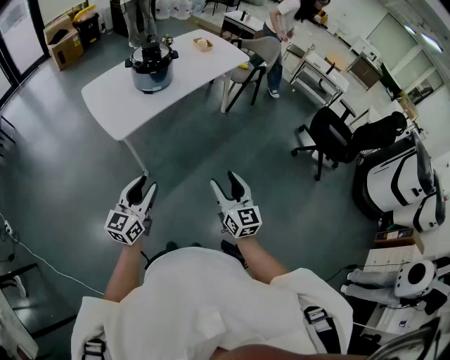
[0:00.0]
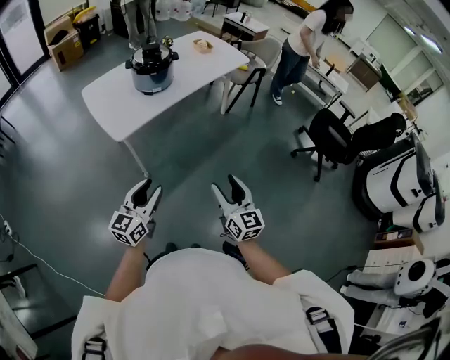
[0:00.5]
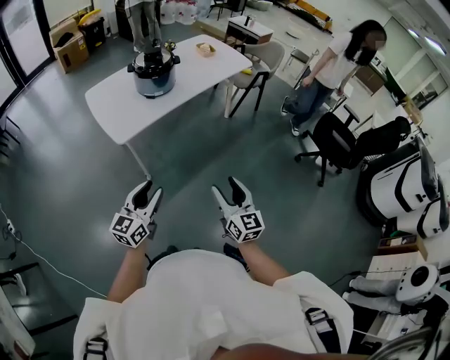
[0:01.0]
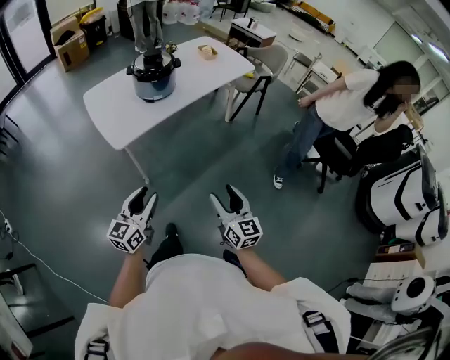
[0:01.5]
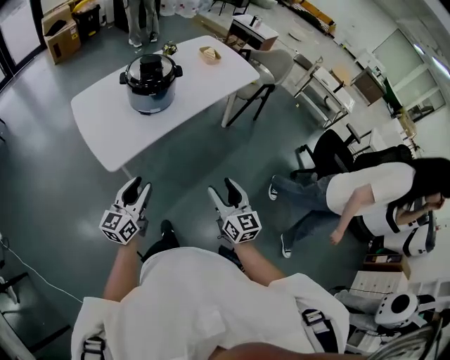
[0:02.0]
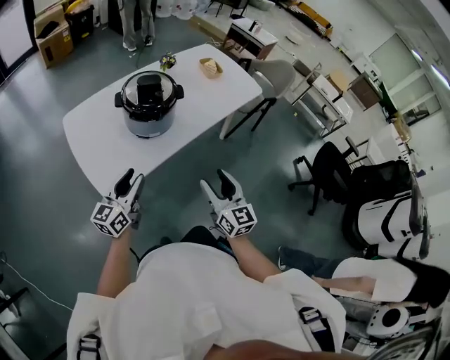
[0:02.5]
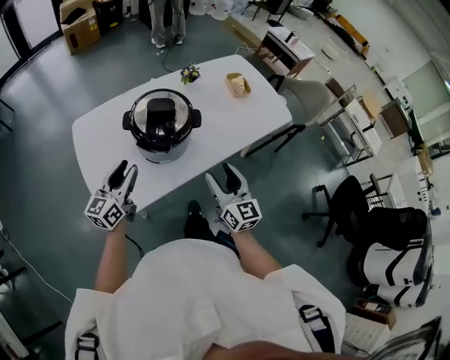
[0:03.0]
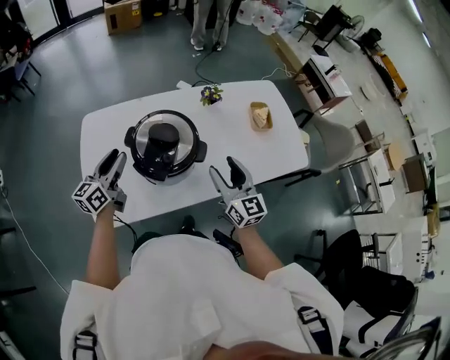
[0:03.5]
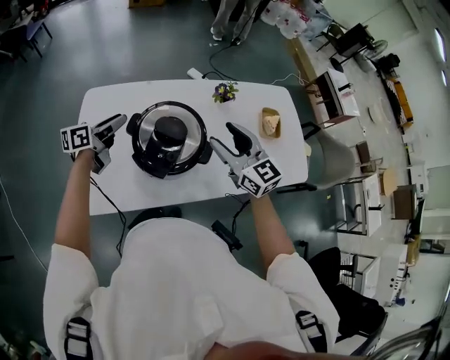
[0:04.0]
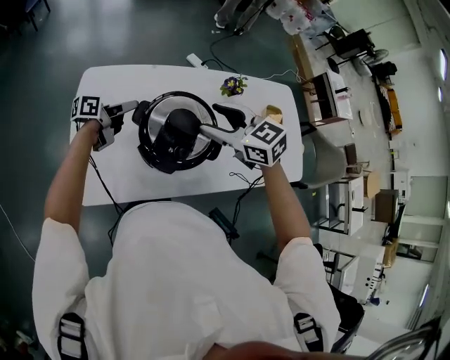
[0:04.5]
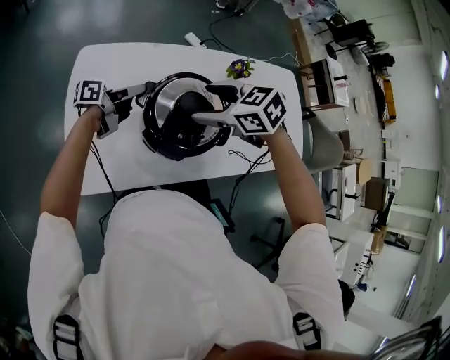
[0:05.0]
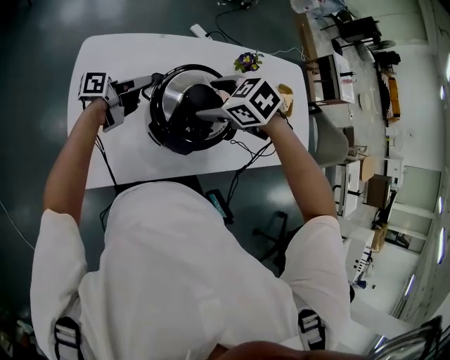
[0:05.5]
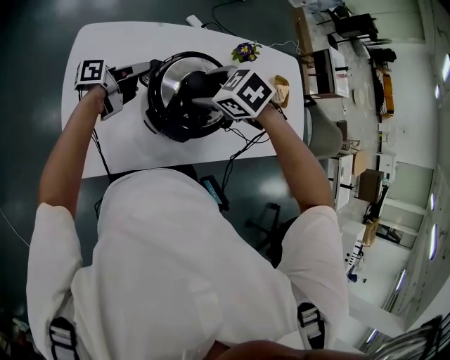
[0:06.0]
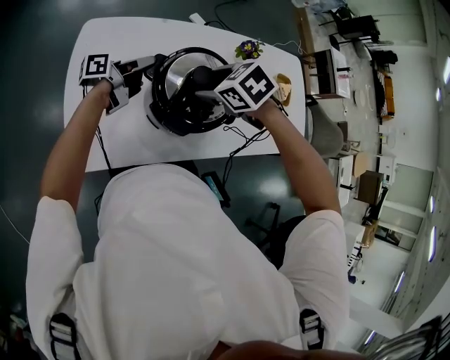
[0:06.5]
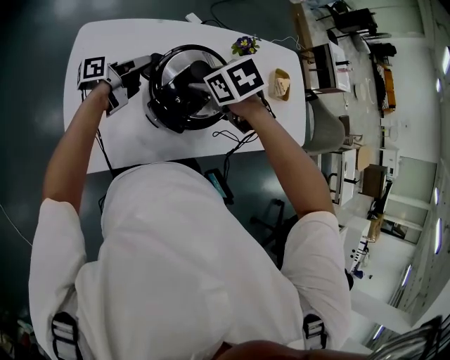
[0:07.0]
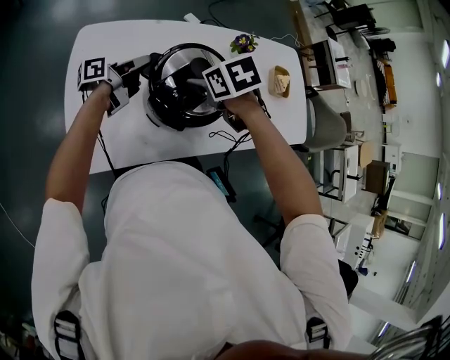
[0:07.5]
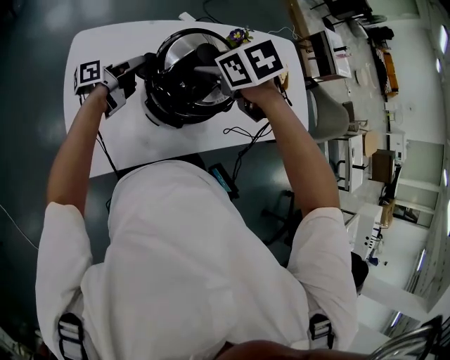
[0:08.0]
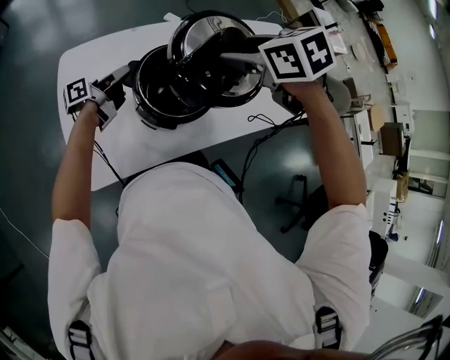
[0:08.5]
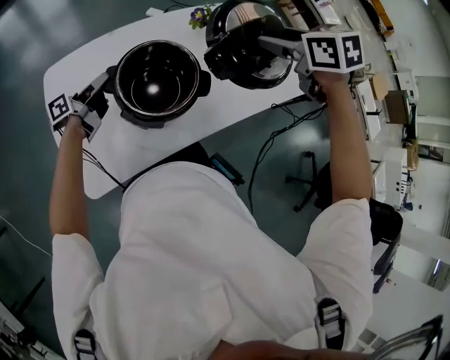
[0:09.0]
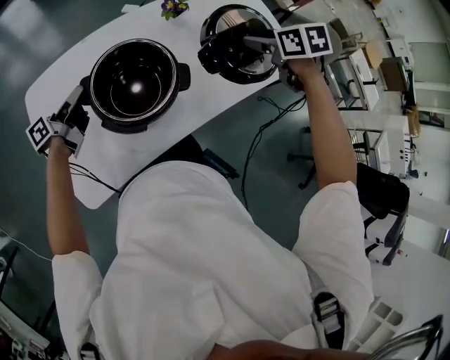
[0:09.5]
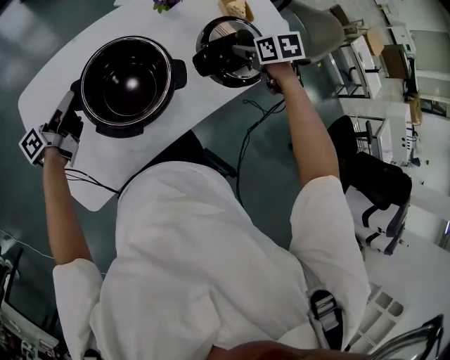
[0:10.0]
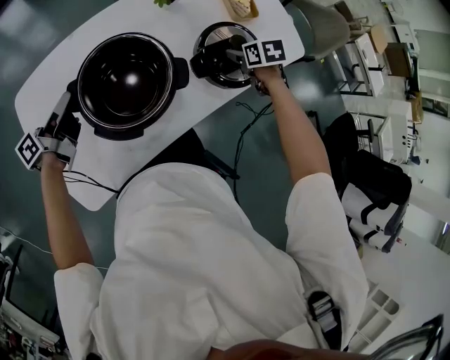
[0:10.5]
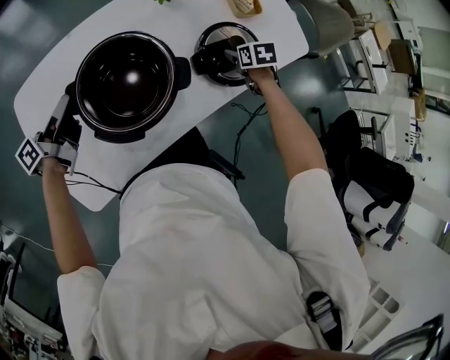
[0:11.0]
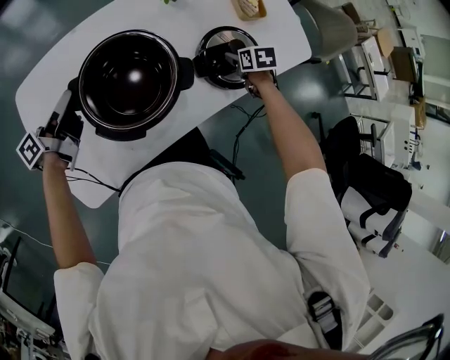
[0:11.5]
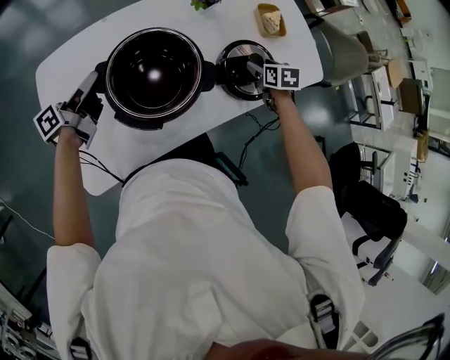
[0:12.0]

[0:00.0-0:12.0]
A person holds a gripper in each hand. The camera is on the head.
0:00.0 to 0:02.0: Both grippers travel together forward, approximately 20 cm.
0:02.0 to 0:04.0: The two grippers travel together, approximately 60 cm. The right gripper turns by approximately 50 degrees, while the left gripper rotates about 30 degrees.
0:04.0 to 0:06.0: The right gripper shifts by roughly 20 cm, and tips its fingers downward by approximately 60 degrees. The left gripper moves downward, some 5 cm, and rotates roughly 30 degrees.
0:06.0 to 0:08.0: The right gripper travels upward by some 5 cm, and changes its angle by about 30 degrees.
0:08.0 to 0:10.0: The right gripper heads to the right, covering roughly 35 cm, and rotates roughly 40 degrees.
0:10.0 to 0:12.0: The right gripper heads downward, covering approximately 10 cm.

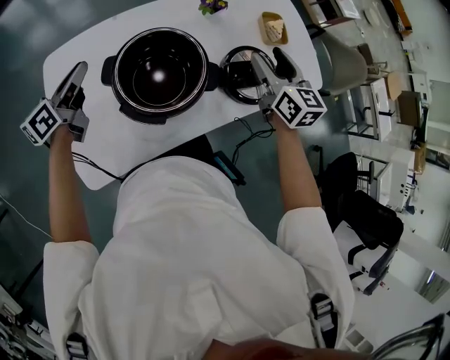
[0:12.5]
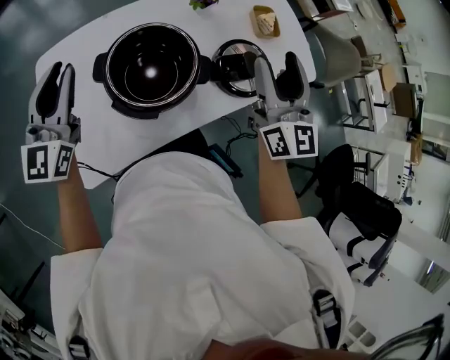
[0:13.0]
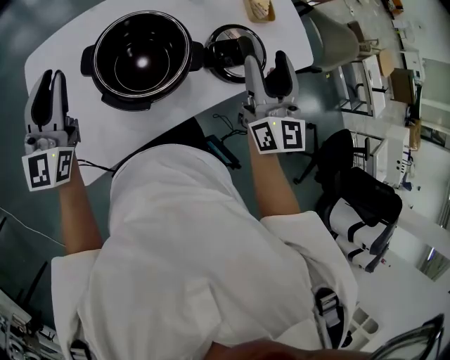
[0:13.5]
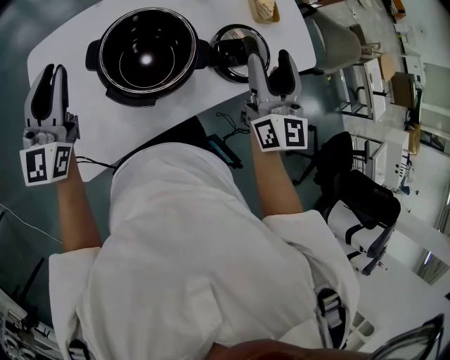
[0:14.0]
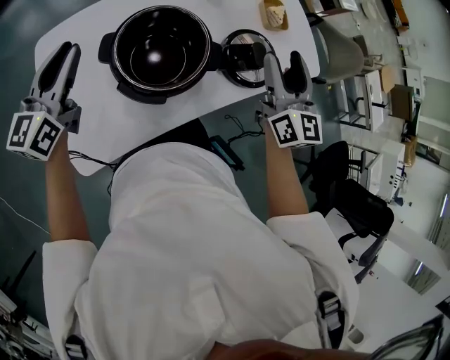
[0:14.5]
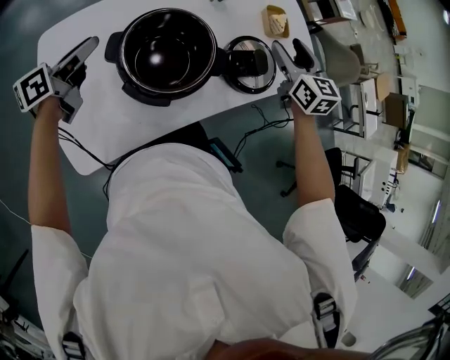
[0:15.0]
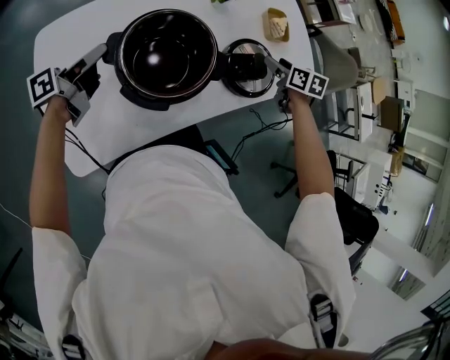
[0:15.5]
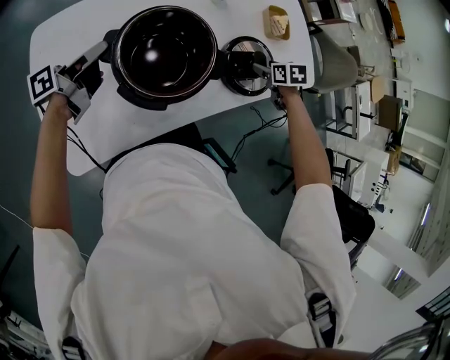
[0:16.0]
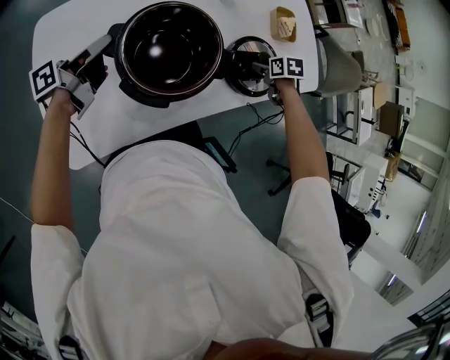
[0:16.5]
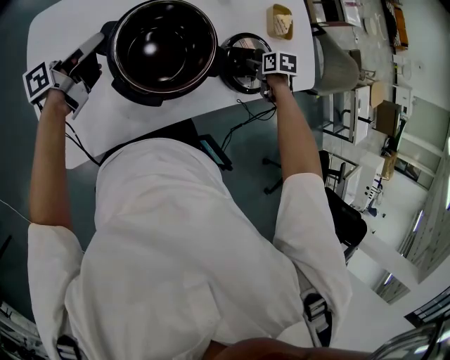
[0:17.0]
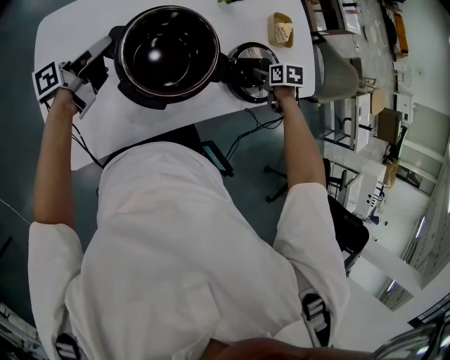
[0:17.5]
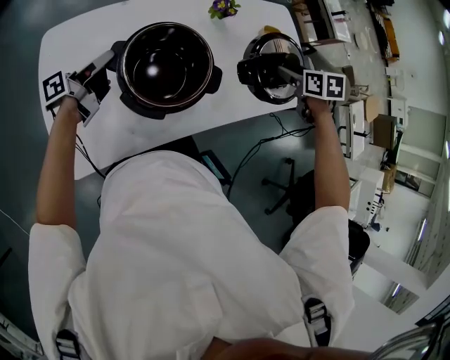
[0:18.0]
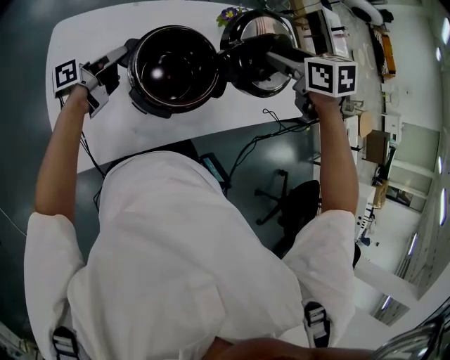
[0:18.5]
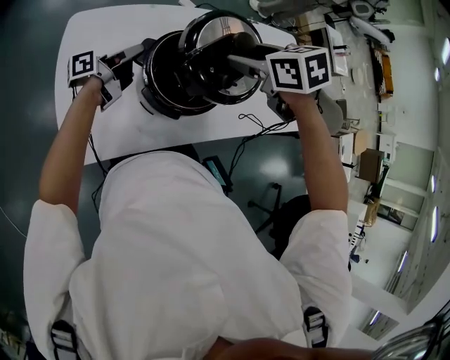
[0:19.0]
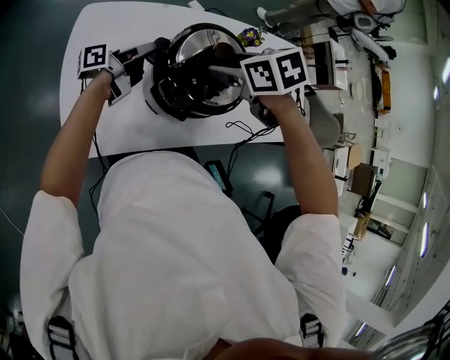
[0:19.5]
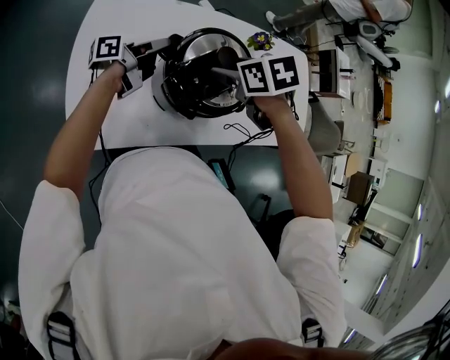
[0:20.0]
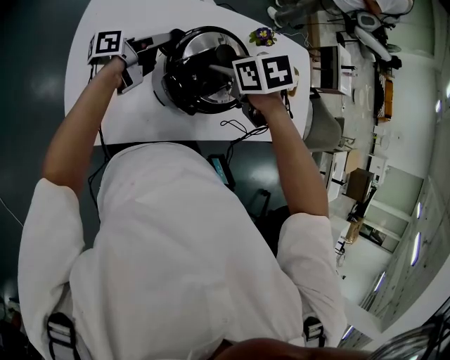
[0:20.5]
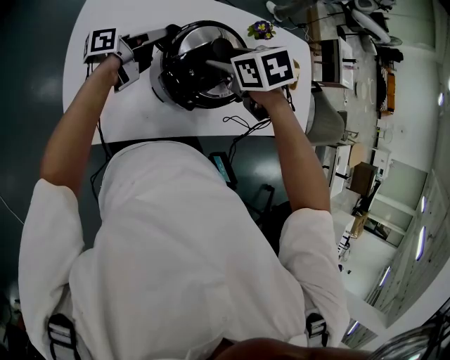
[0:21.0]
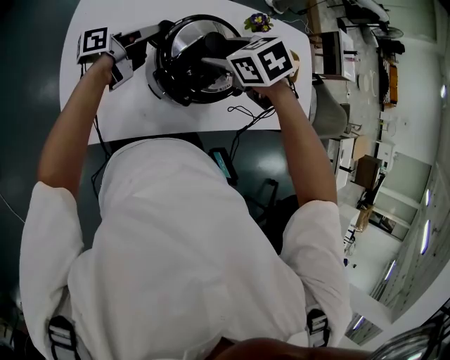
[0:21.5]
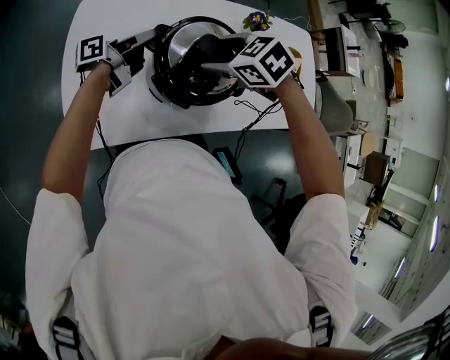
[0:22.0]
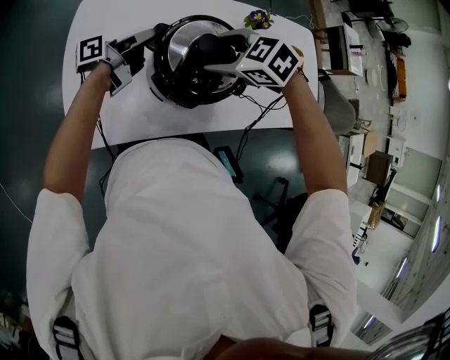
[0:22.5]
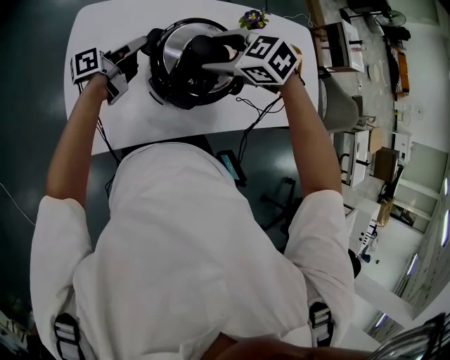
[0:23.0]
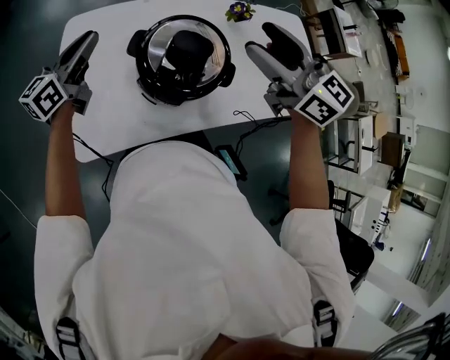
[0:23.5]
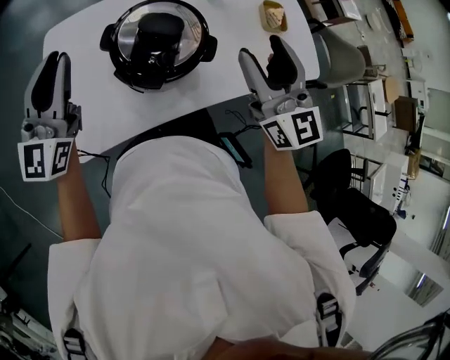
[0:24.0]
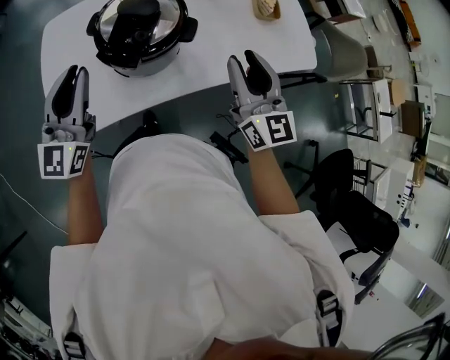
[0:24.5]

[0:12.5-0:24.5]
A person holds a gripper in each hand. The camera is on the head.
0:12.5 to 0:14.5: The right gripper goes some 10 cm backward and upward; the left gripper goes approximately 10 cm upward, and turns by some 30 degrees.
0:14.5 to 0:16.5: The right gripper travels downward by approximately 30 cm, and tips its fingers downward by some 70 degrees, while the left gripper moves downward, about 15 cm, and rotates around the line of its fingers by about 70 degrees, counterclockwise from behind.
0:16.5 to 0:18.5: The right gripper heads upward, covering approximately 30 cm, and changes its angle by about 30 degrees.
0:18.5 to 0:20.5: The right gripper is displaced to the left and downward by roughly 20 cm.
0:20.5 to 0:22.5: The right gripper swivels roughly 40 degrees.
0:22.5 to 0:24.5: The left gripper changes place by roughly 25 cm, and twists about 90 degrees clockwise, seen from behind. Meanwhile the right gripper moves roughly 30 cm, tips its fingers upward by roughly 60 degrees, and closes.

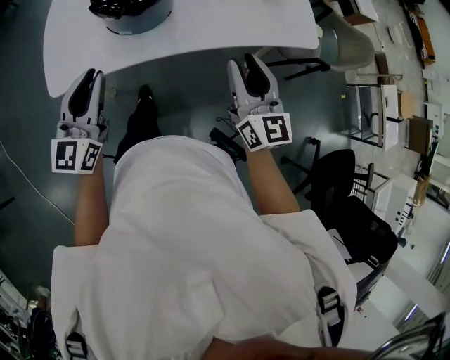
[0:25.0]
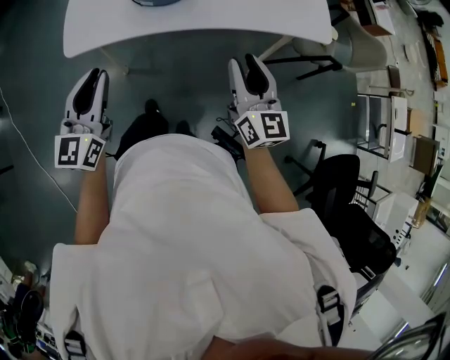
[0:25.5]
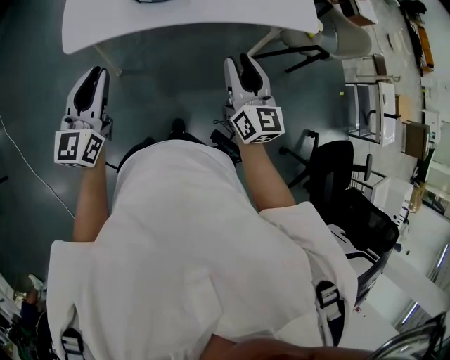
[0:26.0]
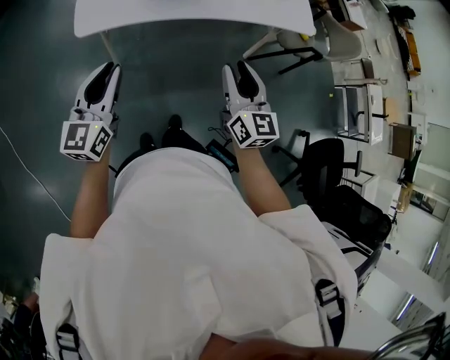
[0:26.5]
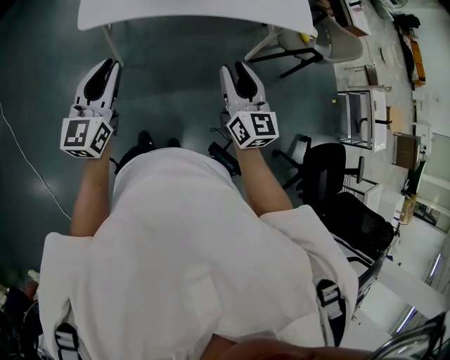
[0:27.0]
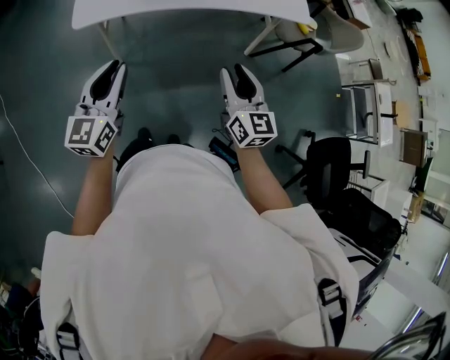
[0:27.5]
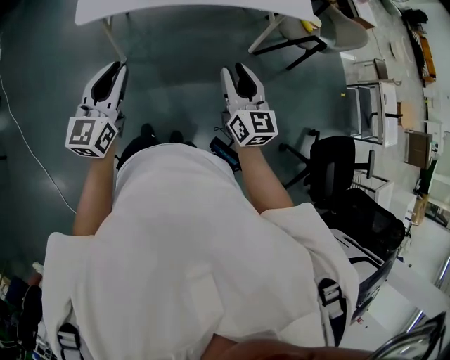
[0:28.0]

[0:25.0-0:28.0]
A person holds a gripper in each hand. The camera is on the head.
0:25.0 to 0:26.5: The right gripper moves backward and to the left, approximately 20 cm. Meanwhile the left gripper moves backward, approximately 20 cm.
0:26.5 to 0:28.0: The grippers both shift to the right and backward by some 15 cm.
